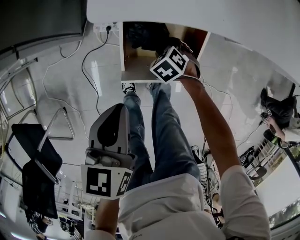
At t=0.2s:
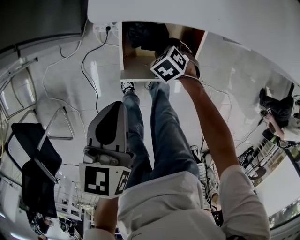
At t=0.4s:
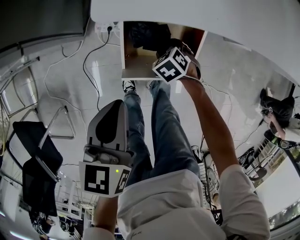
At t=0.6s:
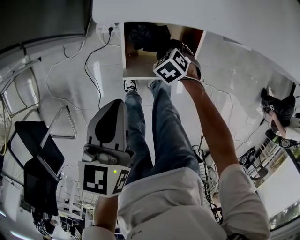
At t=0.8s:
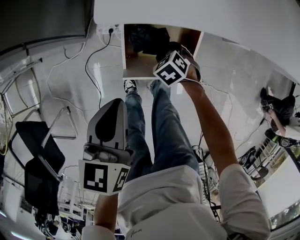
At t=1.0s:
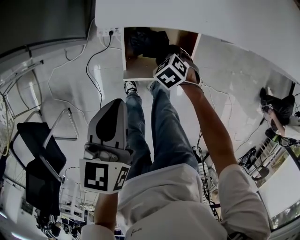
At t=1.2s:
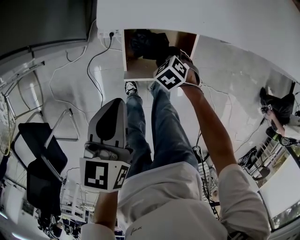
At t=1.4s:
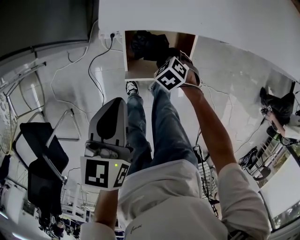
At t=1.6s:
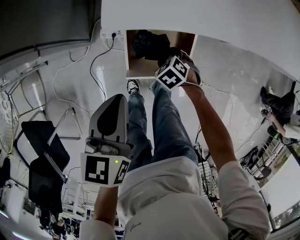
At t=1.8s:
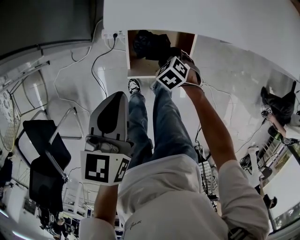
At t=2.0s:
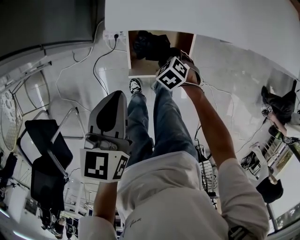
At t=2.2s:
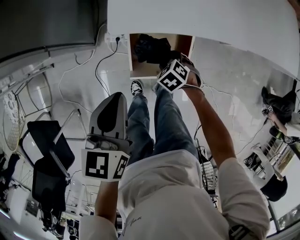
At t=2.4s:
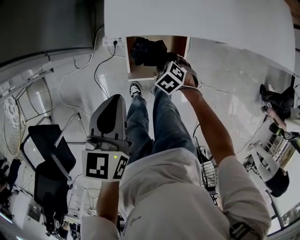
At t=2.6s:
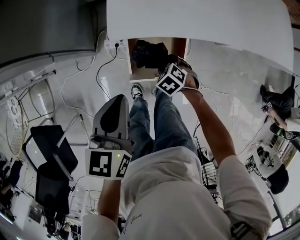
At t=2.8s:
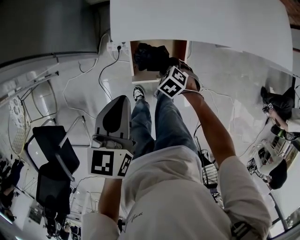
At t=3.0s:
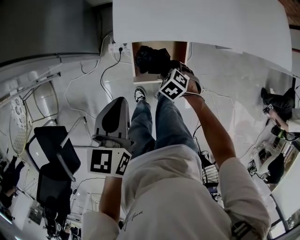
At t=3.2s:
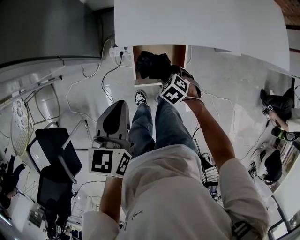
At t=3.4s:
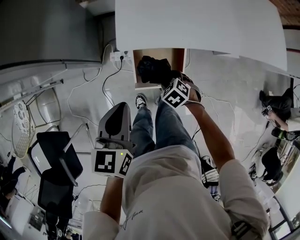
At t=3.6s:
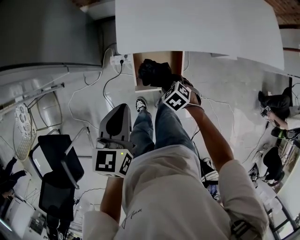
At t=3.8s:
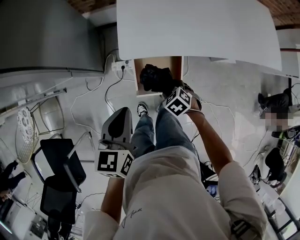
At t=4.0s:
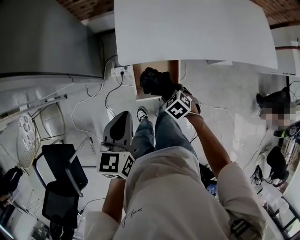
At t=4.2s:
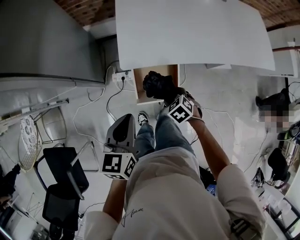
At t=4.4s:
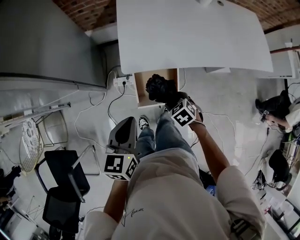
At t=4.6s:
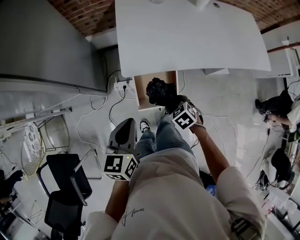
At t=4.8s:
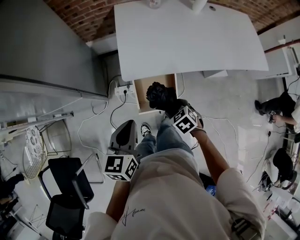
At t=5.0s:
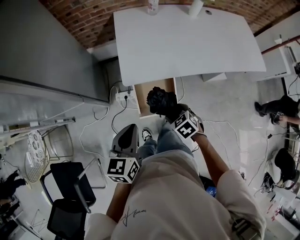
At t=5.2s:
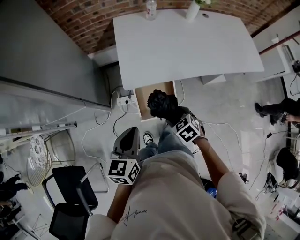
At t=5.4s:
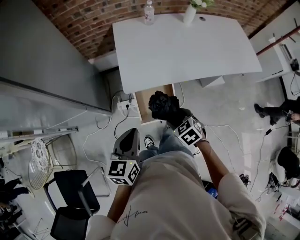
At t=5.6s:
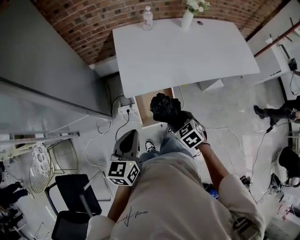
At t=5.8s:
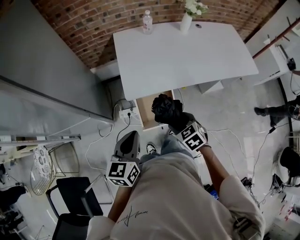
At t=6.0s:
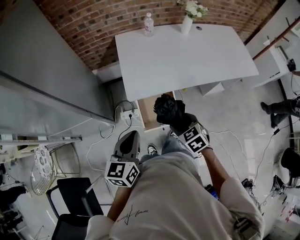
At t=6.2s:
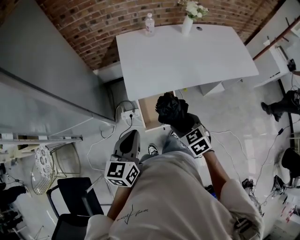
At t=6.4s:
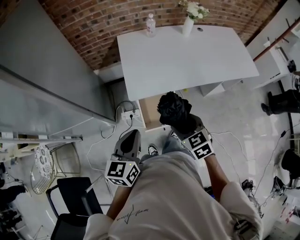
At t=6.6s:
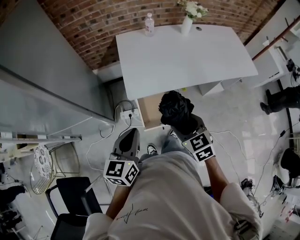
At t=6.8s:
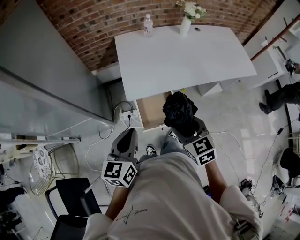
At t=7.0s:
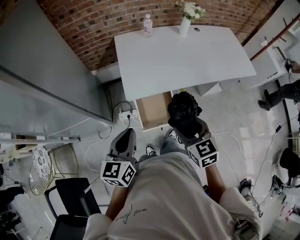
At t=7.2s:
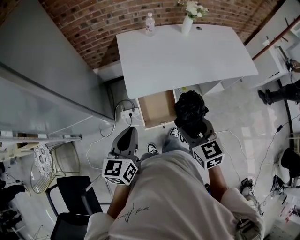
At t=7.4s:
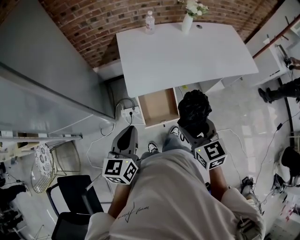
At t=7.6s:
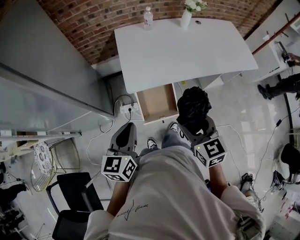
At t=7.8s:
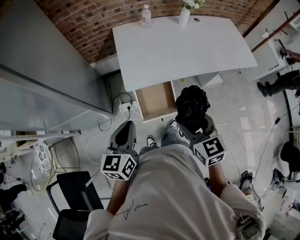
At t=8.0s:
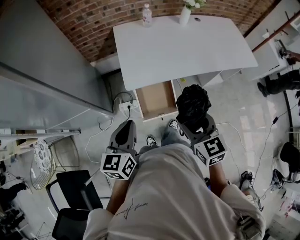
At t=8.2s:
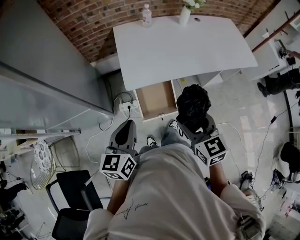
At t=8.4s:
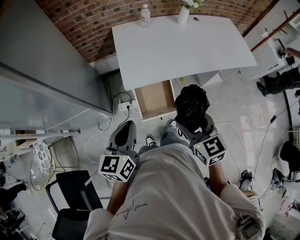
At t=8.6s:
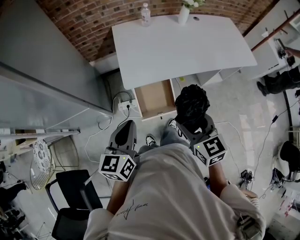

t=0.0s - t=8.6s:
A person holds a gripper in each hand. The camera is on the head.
t=0.0s - t=1.4s: Both grippers move upward, approximately 5 cm.
t=1.4s - t=2.8s: The two grippers go some 10 cm upward.
t=2.8s - t=4.4s: The left gripper goes some 5 cm upward. Meanwhile the right gripper heads upward, covering about 15 cm.
t=4.4s - t=5.8s: The right gripper heads upward, covering about 15 cm, while the left gripper changes place by some 5 cm.
t=5.8s - t=7.2s: The right gripper travels upward by roughly 15 cm, and changes its angle by about 30 degrees.
t=7.2s - t=8.6s: There are only small adjustments of the grippers.

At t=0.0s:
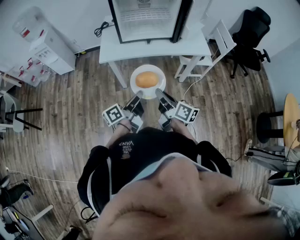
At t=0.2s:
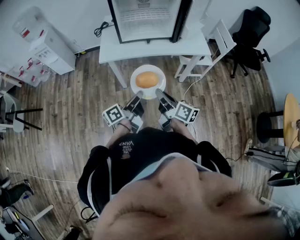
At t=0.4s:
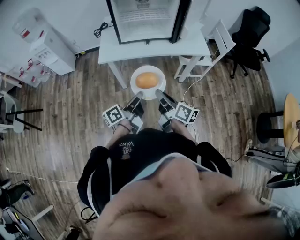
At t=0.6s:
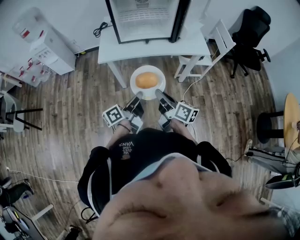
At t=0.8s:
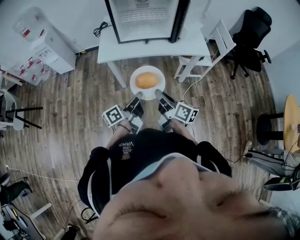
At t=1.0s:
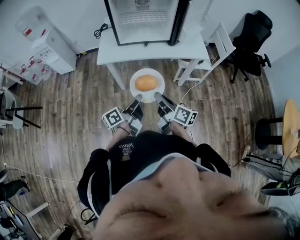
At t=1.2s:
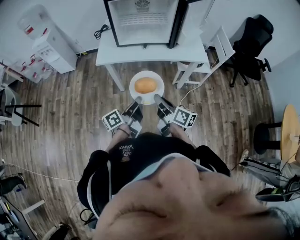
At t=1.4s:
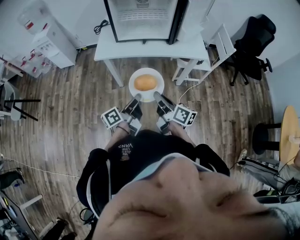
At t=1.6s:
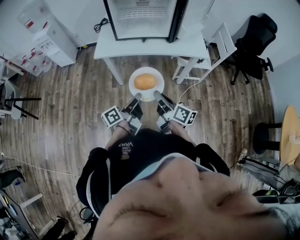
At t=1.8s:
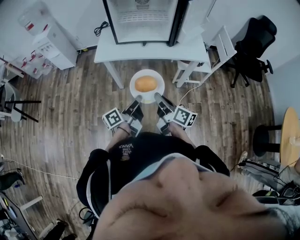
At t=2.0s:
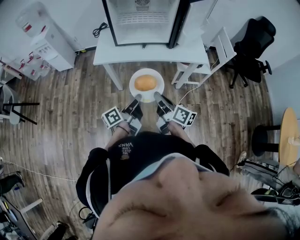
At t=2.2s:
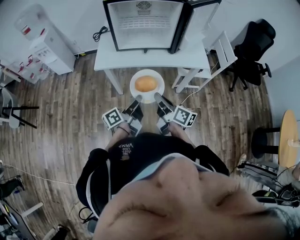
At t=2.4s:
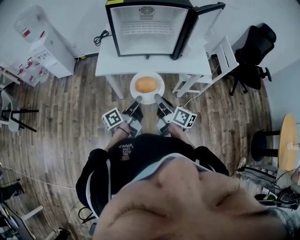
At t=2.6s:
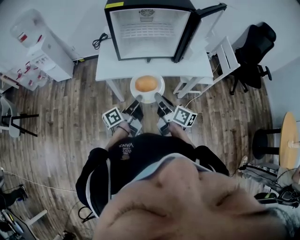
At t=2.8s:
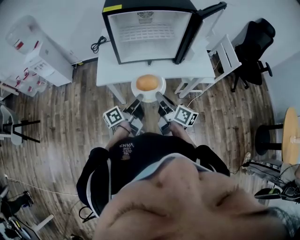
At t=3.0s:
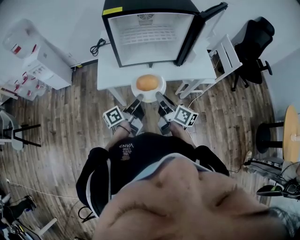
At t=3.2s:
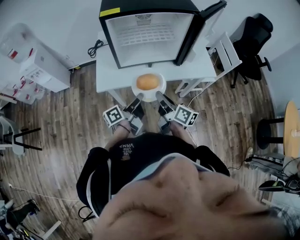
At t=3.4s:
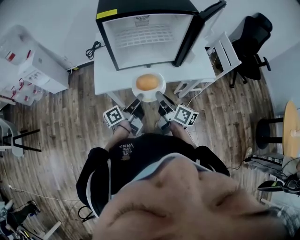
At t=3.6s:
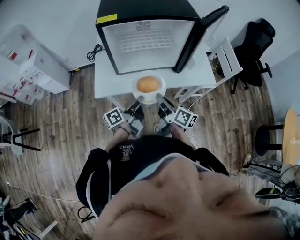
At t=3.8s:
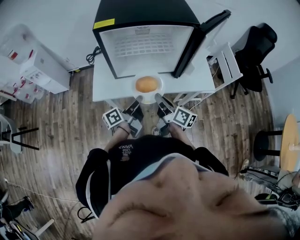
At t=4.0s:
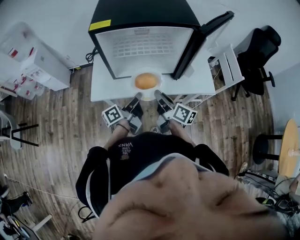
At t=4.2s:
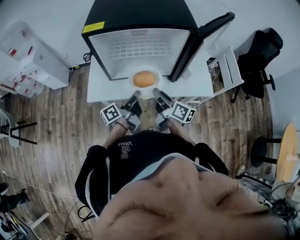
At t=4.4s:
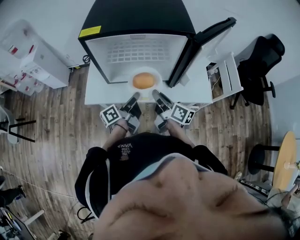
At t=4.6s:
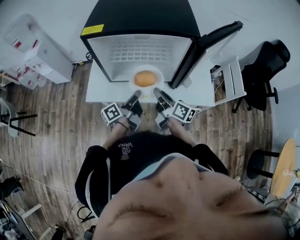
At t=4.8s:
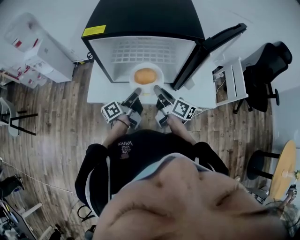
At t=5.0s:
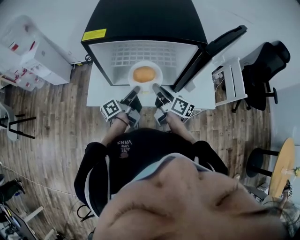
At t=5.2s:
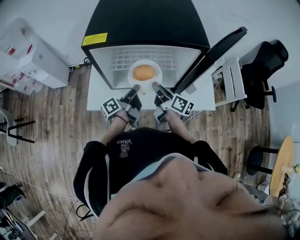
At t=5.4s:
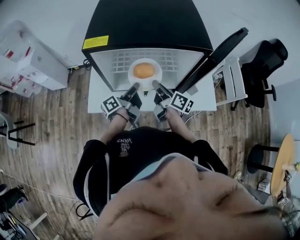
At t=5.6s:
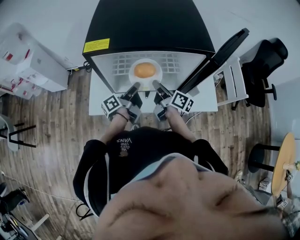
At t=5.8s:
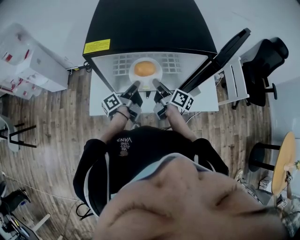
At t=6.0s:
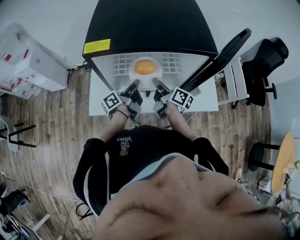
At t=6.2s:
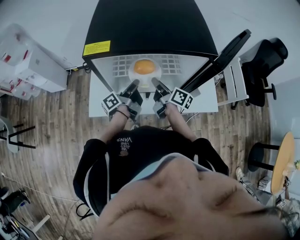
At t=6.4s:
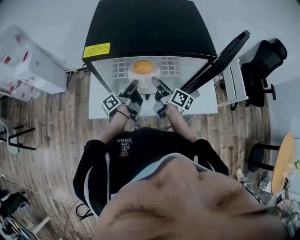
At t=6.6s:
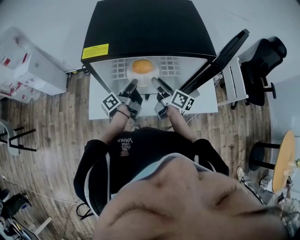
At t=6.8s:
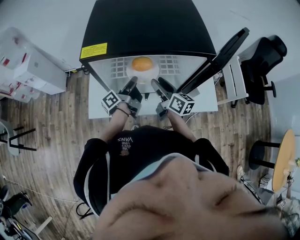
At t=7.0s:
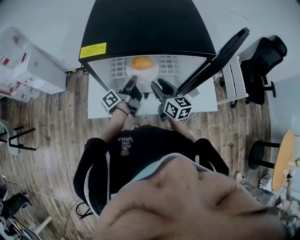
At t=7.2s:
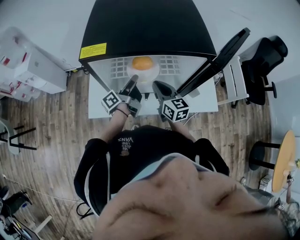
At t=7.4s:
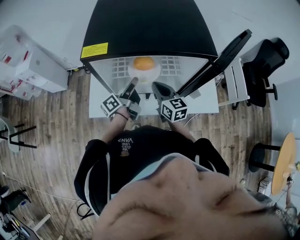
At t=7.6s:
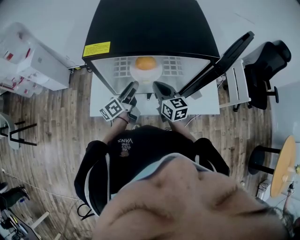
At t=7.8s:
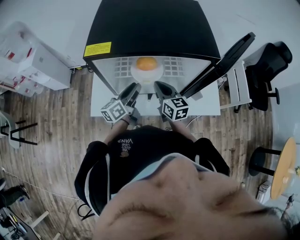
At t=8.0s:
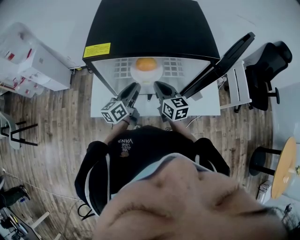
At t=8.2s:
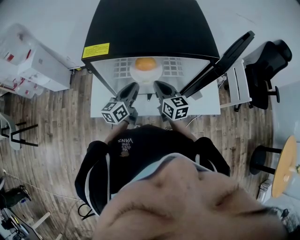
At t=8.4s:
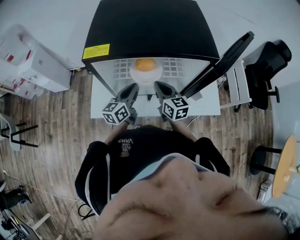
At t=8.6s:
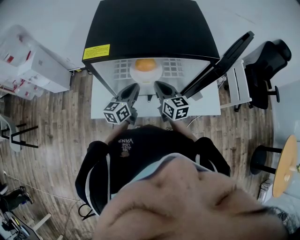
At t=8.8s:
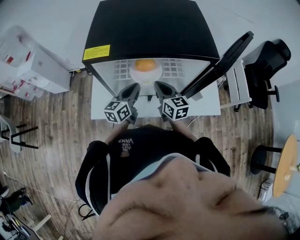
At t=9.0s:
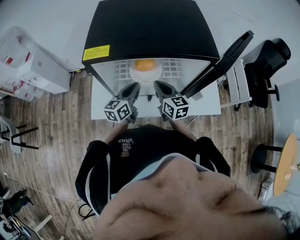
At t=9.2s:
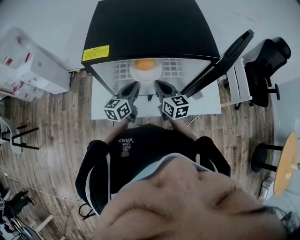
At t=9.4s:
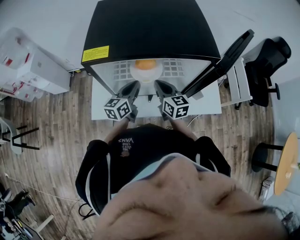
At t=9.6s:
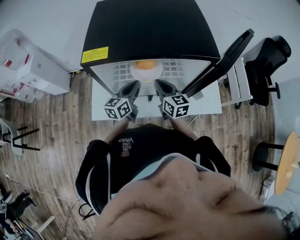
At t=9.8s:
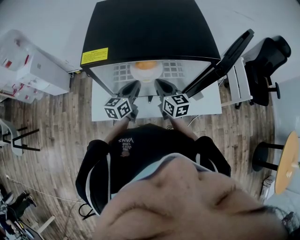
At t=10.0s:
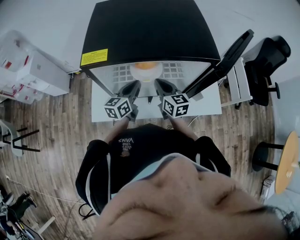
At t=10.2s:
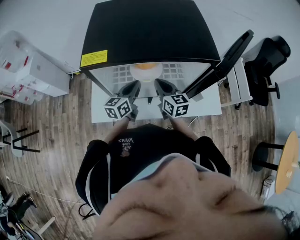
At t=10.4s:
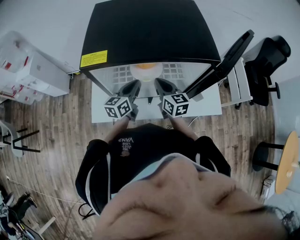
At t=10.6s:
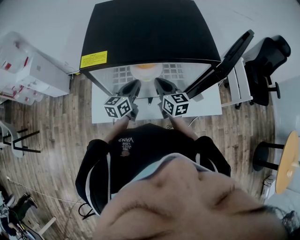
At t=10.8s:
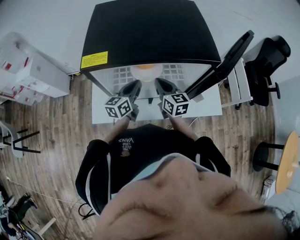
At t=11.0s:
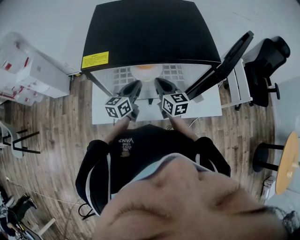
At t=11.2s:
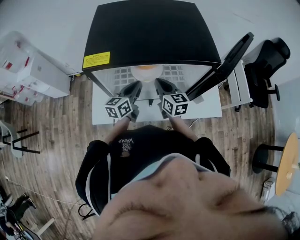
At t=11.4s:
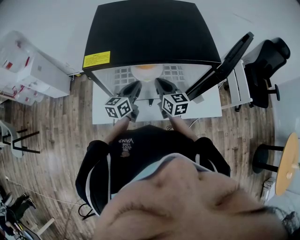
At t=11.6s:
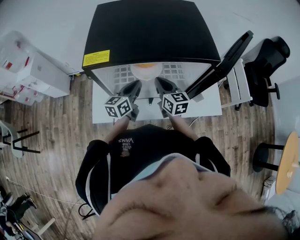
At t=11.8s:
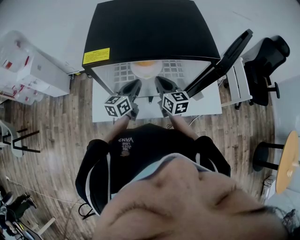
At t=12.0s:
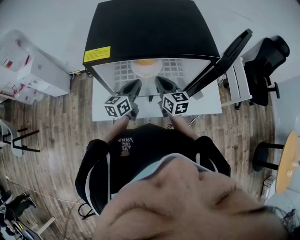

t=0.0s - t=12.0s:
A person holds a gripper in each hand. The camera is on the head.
t=0.0s - t=1.6s: The two grippers go approximately 5 cm to the right.
t=1.6s - t=3.0s: The left gripper goes about 20 cm forward; the right gripper goes approximately 20 cm forward and to the left.
t=3.0s - t=4.4s: The left gripper is displaced forward and to the right by approximately 15 cm, while the right gripper goes about 15 cm forward.
t=4.4s - t=6.0s: The grippers both shift forward by roughly 15 cm.
t=6.0s - t=7.6s: The right gripper twists about 50 degrees counterclockwise, seen from behind, and opens, then closes once more. The left gripper rotates about 20 degrees, and opens its fingers.
t=7.6s - t=9.0s: The left gripper changes its angle by roughly 30 degrees, and closes its fingers.
t=9.0s - t=10.4s: The grippers stay close to where they were, moving slightly.
t=10.4s - t=12.0s: Neither gripper changes place.

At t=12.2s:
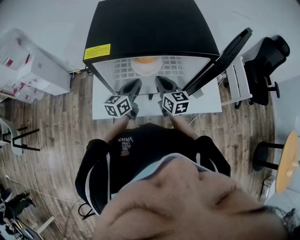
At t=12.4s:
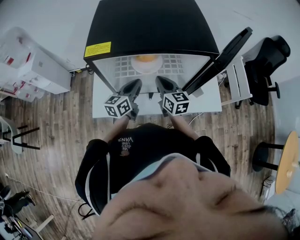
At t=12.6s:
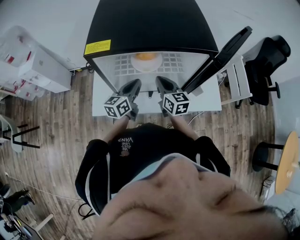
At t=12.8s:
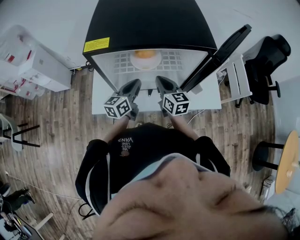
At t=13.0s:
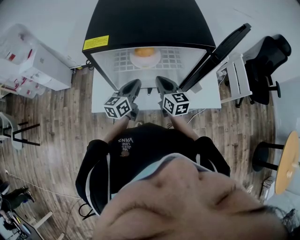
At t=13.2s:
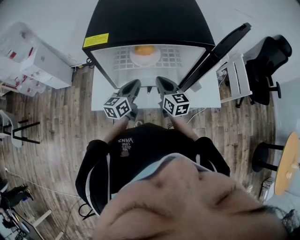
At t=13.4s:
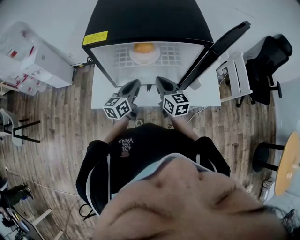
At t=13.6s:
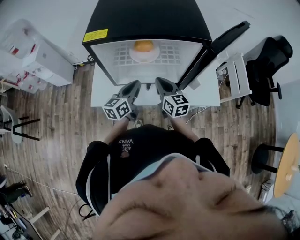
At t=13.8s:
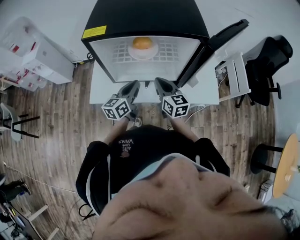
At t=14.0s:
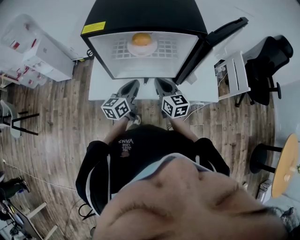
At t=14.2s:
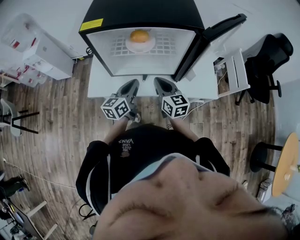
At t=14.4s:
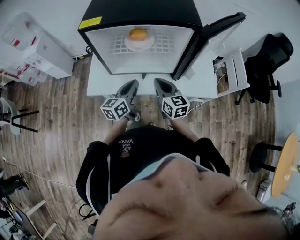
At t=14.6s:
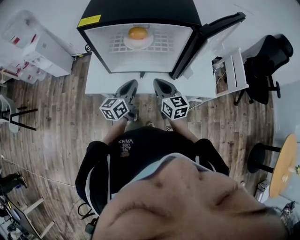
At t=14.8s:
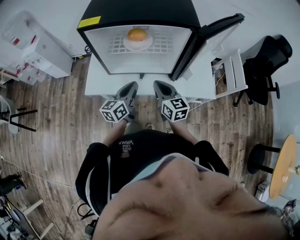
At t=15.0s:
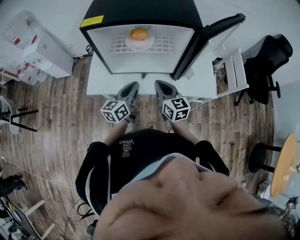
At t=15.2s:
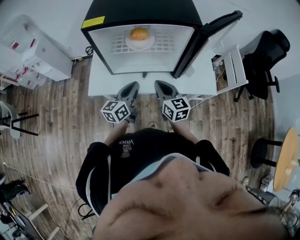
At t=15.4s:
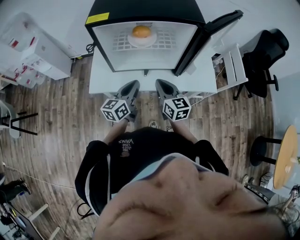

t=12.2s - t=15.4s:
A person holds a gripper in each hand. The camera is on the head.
t=12.2s - t=13.8s: Both grippers travel together backward, approximately 10 cm.
t=13.8s - t=15.4s: The grippers both shift backward by approximately 10 cm.
